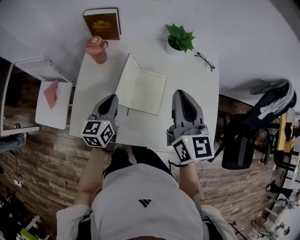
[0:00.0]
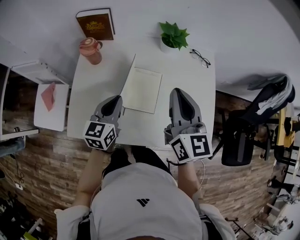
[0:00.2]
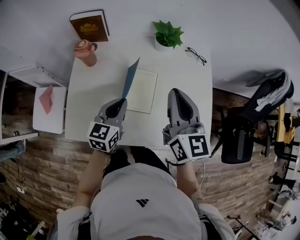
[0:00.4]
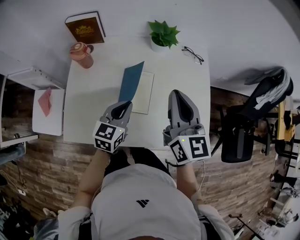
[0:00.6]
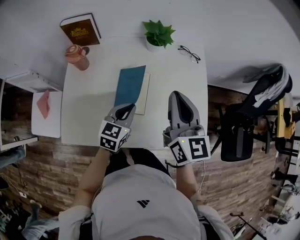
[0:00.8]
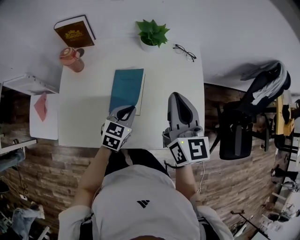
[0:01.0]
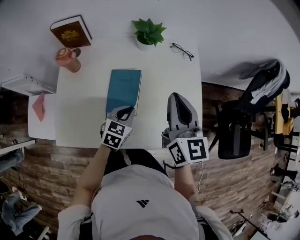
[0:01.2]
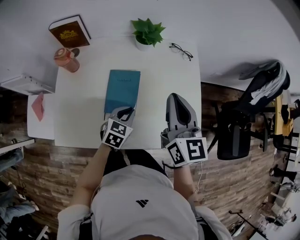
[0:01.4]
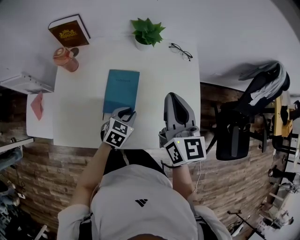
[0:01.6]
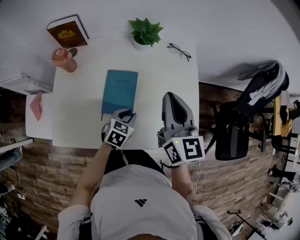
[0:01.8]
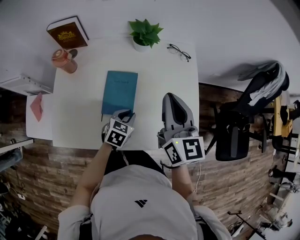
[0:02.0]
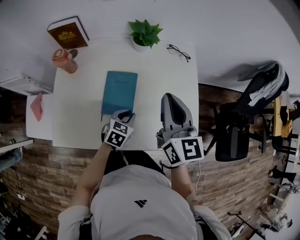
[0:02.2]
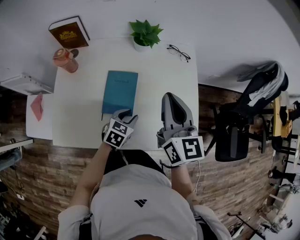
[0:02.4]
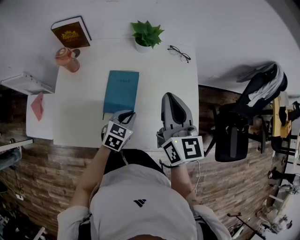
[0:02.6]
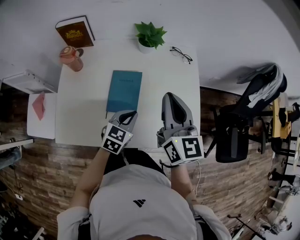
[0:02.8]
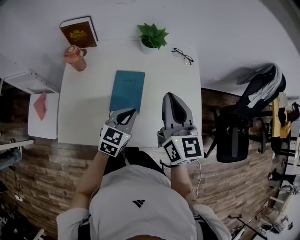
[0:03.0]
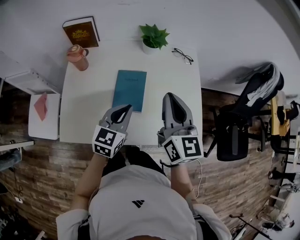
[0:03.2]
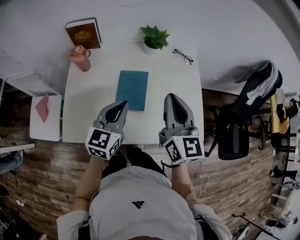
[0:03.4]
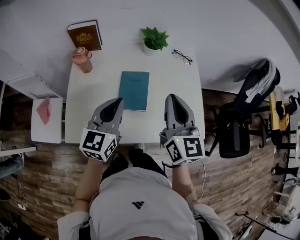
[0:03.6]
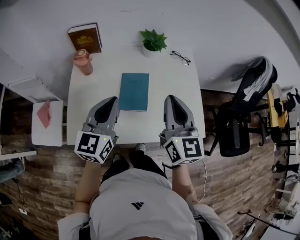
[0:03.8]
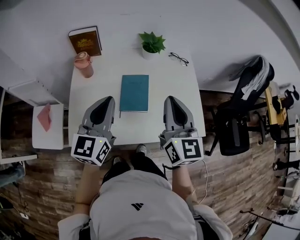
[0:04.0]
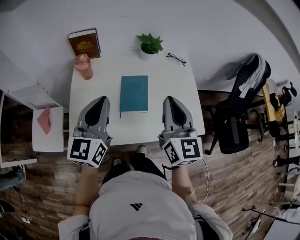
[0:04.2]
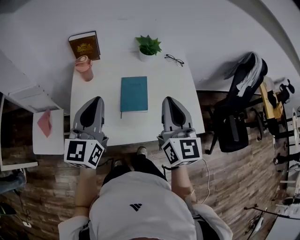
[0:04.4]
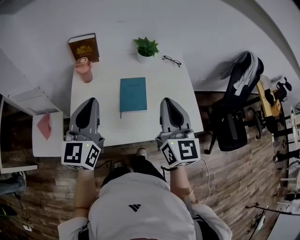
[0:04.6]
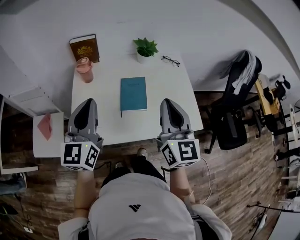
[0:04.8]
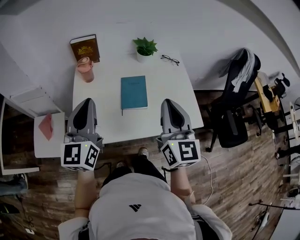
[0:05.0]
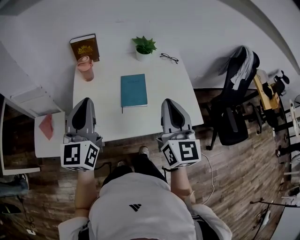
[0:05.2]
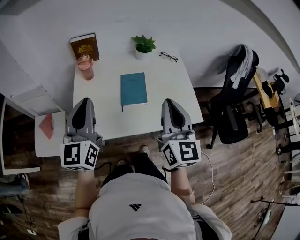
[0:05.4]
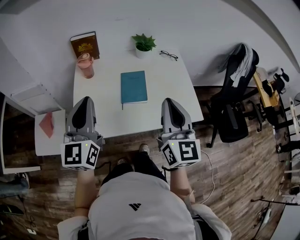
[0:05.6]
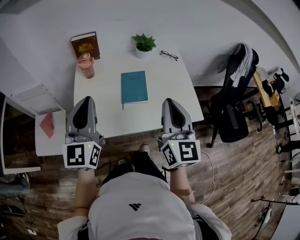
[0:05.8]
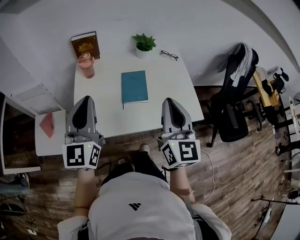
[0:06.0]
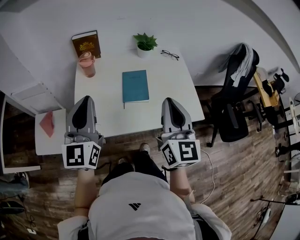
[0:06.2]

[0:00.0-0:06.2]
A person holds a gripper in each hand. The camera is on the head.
0:00.0 to 0:01.6: The left gripper is displaced to the right and downward by roughly 25 cm, and rotates roughly 40 degrees. Meanwhile the right gripper moves to the right, about 10 cm.
0:01.6 to 0:03.2: The left gripper shifts about 15 cm upward, and rotates some 20 degrees. The right gripper changes place by approximately 5 cm.
0:03.2 to 0:04.6: The left gripper moves upward, to the left and backward, about 25 cm, and rotates about 30 degrees, while the right gripper travels backward and upward by some 10 cm.
0:04.6 to 0:06.2: The two grippers go some 5 cm backward.

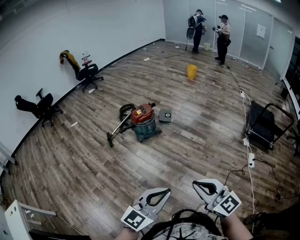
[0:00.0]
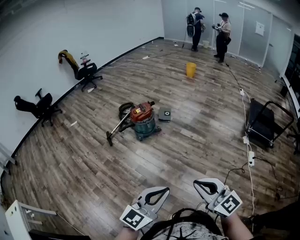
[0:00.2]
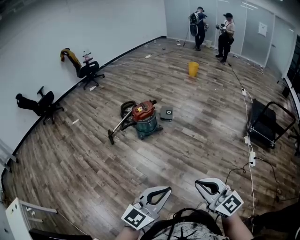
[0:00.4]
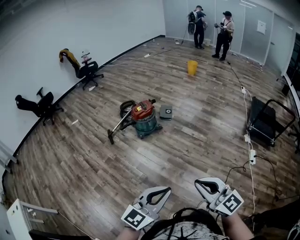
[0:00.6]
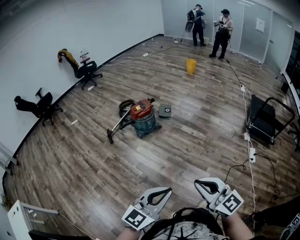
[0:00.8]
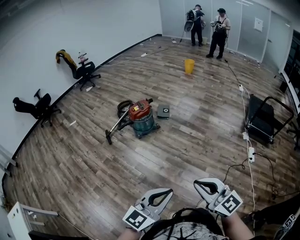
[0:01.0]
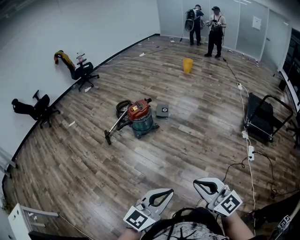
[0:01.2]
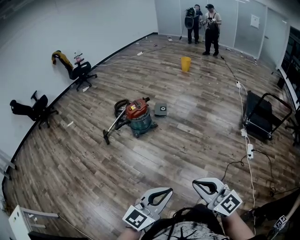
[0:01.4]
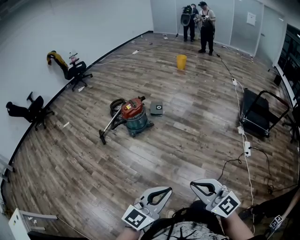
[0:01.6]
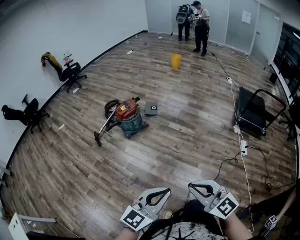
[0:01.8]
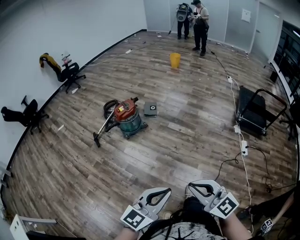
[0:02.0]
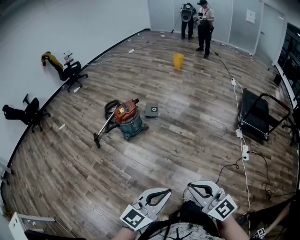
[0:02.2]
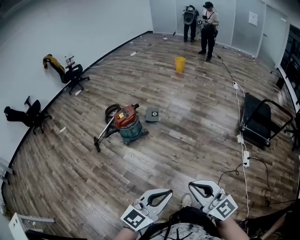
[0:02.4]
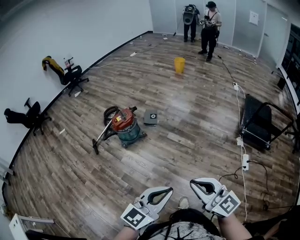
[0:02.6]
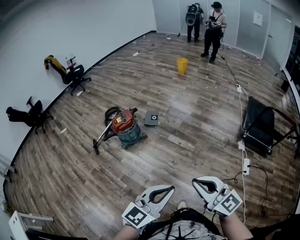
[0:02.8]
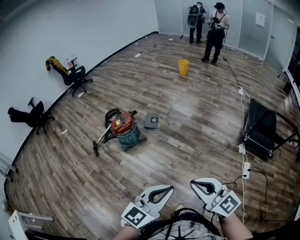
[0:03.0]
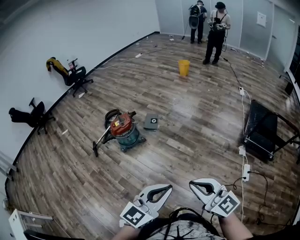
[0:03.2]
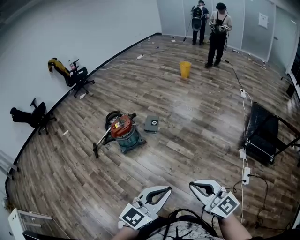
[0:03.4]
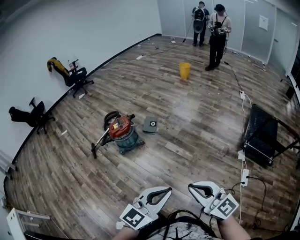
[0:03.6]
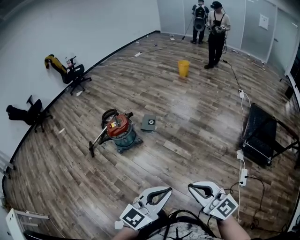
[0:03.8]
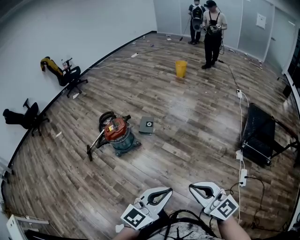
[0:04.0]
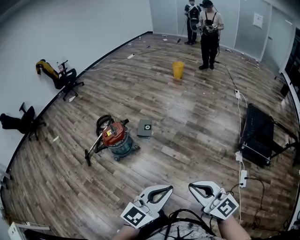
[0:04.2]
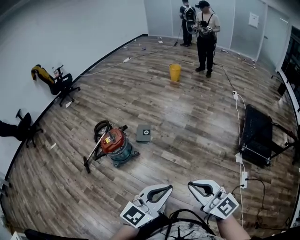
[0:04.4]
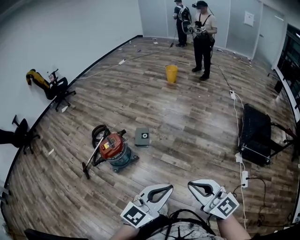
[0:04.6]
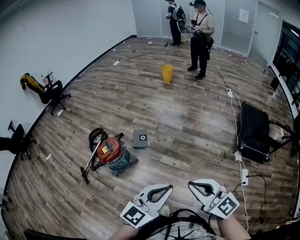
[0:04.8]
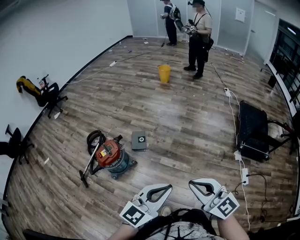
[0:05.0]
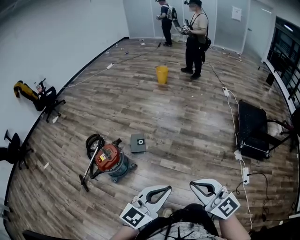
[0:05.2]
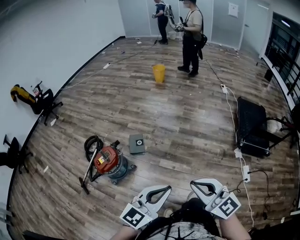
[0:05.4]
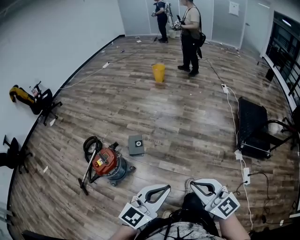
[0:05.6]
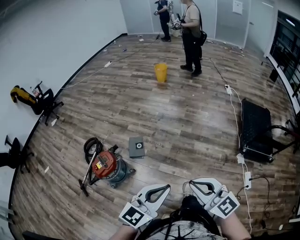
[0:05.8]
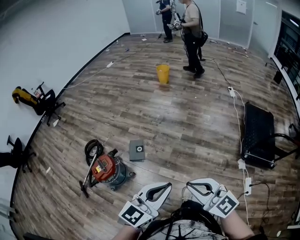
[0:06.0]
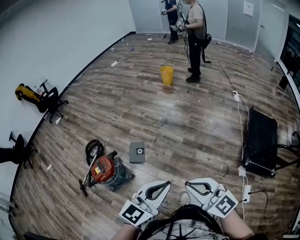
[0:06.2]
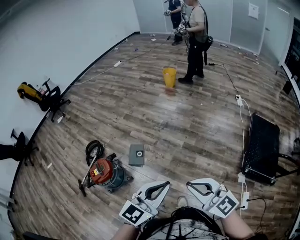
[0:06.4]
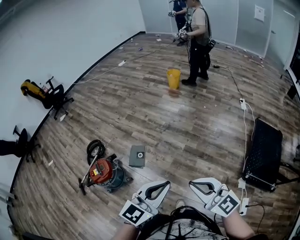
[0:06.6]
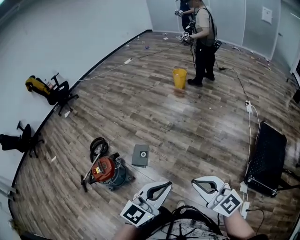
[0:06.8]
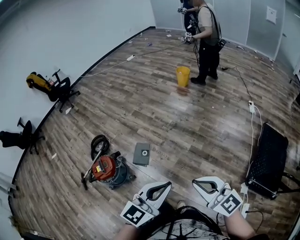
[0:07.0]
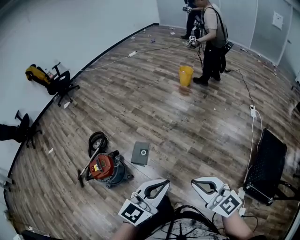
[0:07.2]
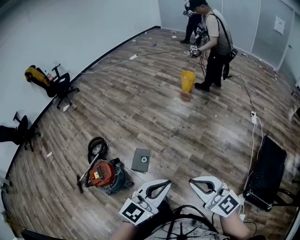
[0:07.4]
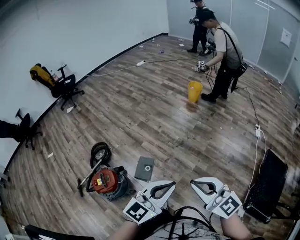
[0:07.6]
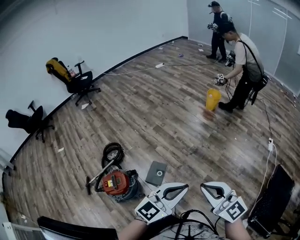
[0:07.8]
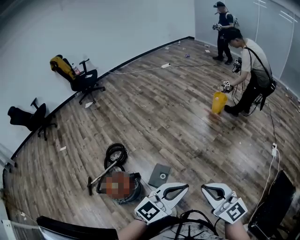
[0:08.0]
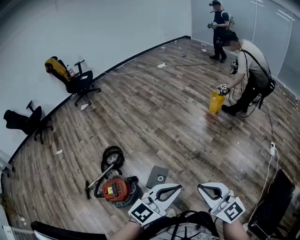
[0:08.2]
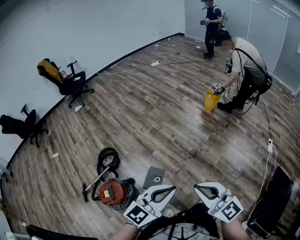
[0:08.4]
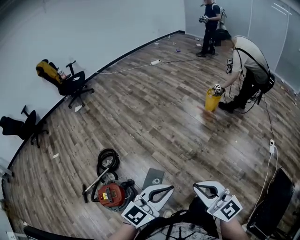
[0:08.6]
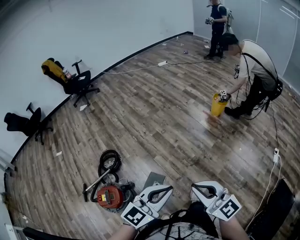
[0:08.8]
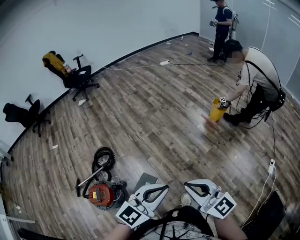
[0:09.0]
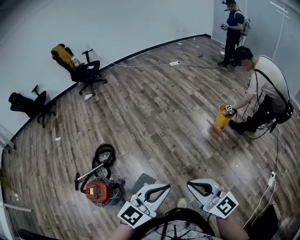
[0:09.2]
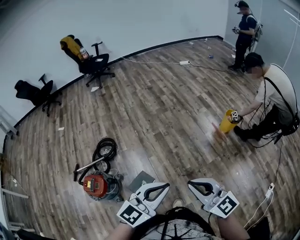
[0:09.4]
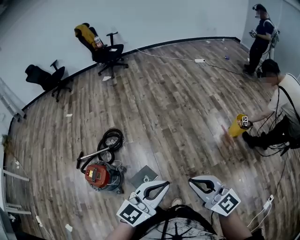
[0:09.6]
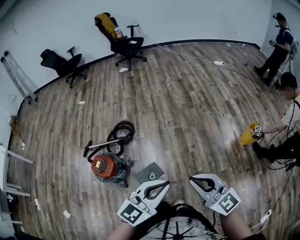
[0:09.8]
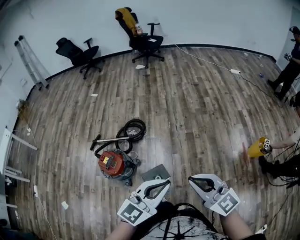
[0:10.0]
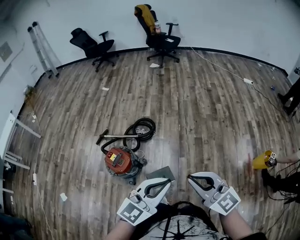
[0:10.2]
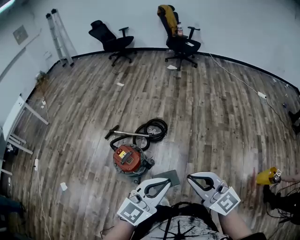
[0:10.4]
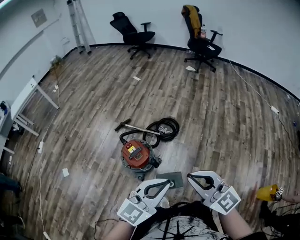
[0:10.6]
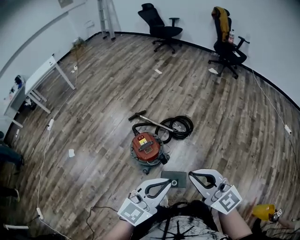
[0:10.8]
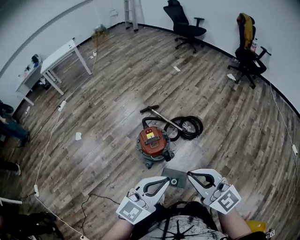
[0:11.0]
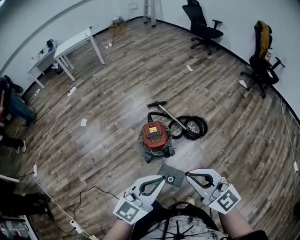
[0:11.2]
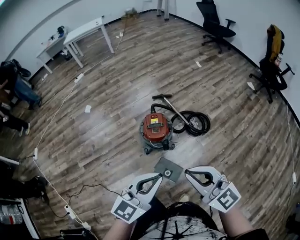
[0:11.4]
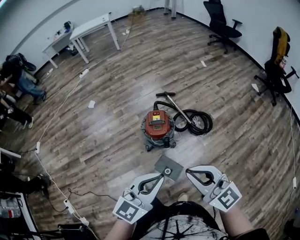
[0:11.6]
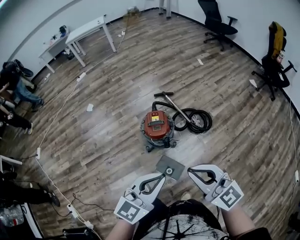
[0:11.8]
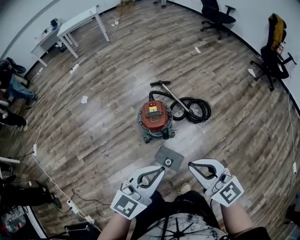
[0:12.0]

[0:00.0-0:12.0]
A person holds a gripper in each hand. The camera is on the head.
0:00.0 to 0:01.6: The grippers stay close to where they were, moving slightly.
0:01.6 to 0:03.0: The grippers both shift forward and to the right by some 30 cm.
0:03.0 to 0:04.4: The two grippers go roughly 20 cm forward.
0:04.4 to 0:06.0: The two grippers go approximately 30 cm forward.
0:06.0 to 0:07.6: The grippers both shift forward by roughly 30 cm.
0:07.6 to 0:09.0: Both grippers move forward, roughly 30 cm.
0:09.0 to 0:10.4: The right gripper changes place by roughly 25 cm, and swivels some 50 degrees, while the left gripper changes place by roughly 20 cm, and swivels roughly 50 degrees.
0:10.4 to 0:12.0: The grippers both shift downward by about 10 cm. The right gripper rotates some 50 degrees. The left gripper swivels roughly 50 degrees.

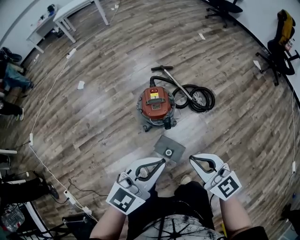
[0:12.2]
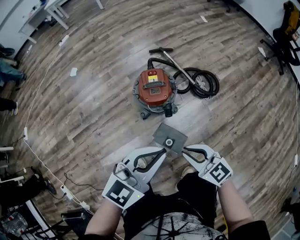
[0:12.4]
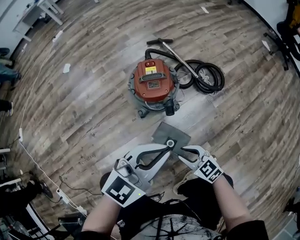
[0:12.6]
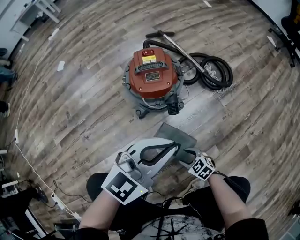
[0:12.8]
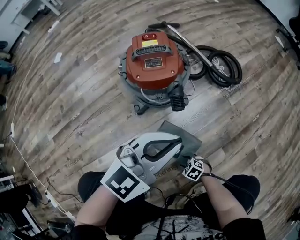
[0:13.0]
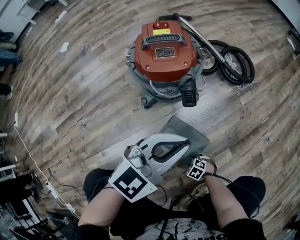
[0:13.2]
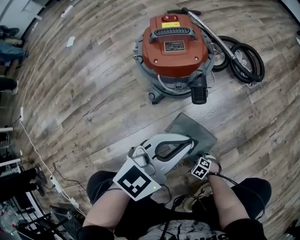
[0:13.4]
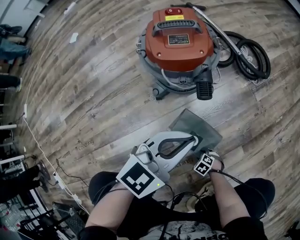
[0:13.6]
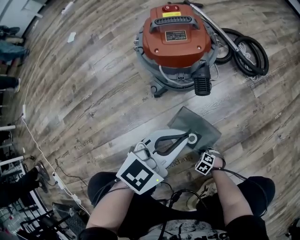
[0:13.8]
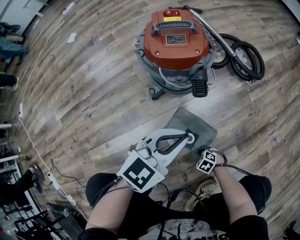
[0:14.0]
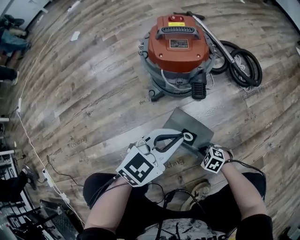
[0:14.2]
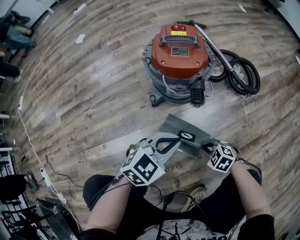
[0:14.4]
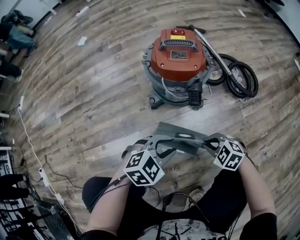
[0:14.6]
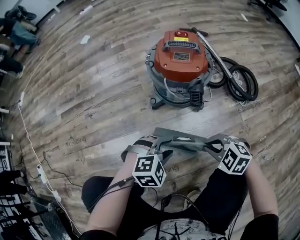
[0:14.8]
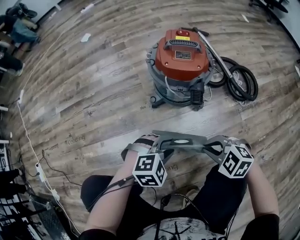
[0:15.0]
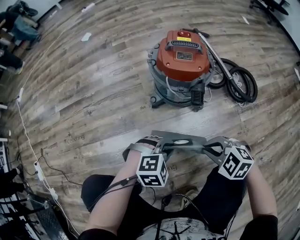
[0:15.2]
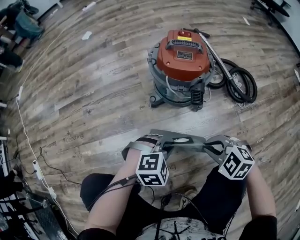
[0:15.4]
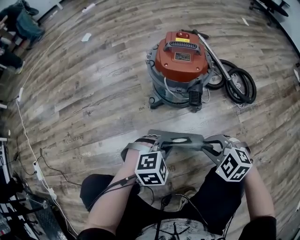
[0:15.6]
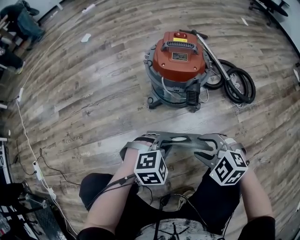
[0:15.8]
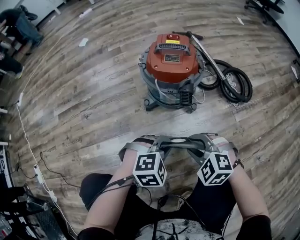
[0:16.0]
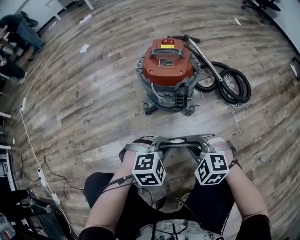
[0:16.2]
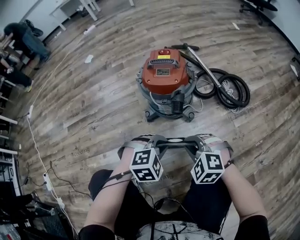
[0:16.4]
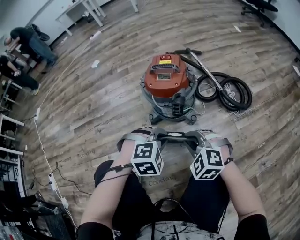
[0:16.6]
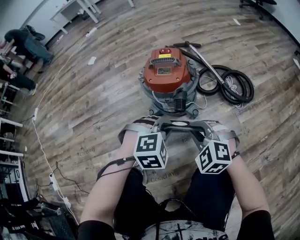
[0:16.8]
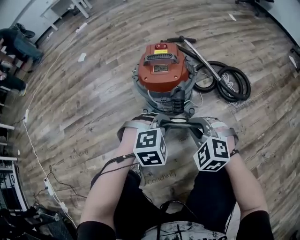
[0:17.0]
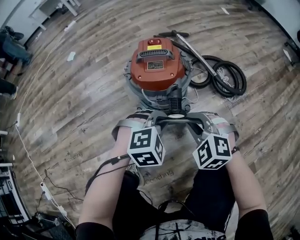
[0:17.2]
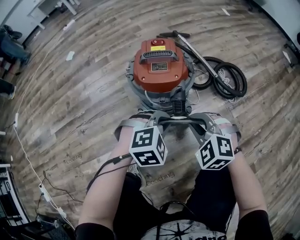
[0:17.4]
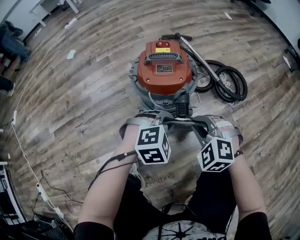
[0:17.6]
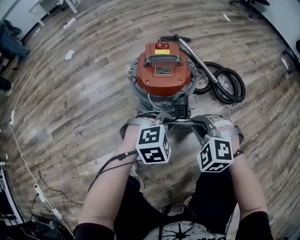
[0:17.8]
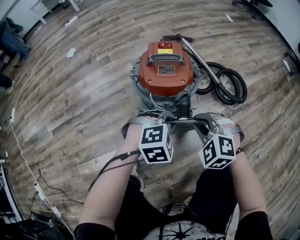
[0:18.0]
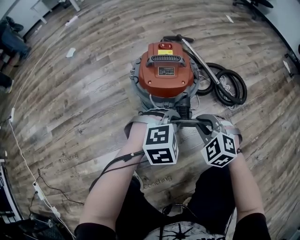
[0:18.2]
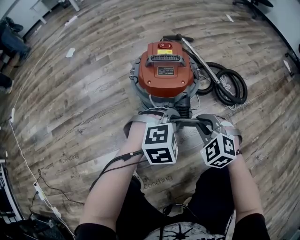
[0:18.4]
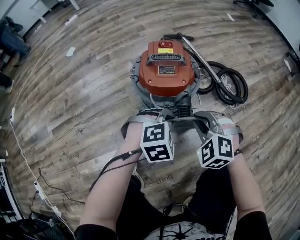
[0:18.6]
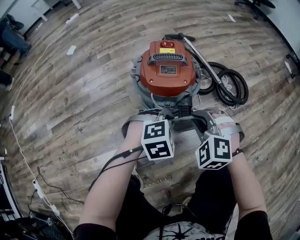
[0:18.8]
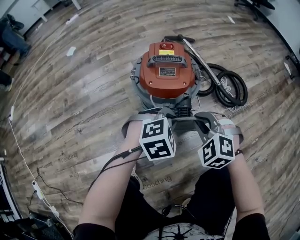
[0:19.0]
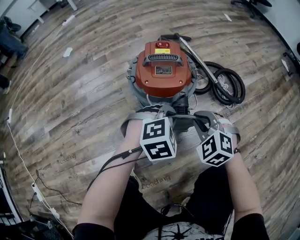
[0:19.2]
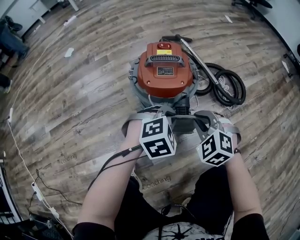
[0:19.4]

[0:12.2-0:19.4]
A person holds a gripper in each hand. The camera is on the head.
0:12.2 to 0:13.6: The left gripper heads downward, covering roughly 50 cm. The right gripper shifts about 90 cm downward, tips its fingers downward by some 70 degrees, and opens up.
0:13.6 to 0:15.0: The left gripper is displaced downward by approximately 10 cm, tips its fingers downward by some 30 degrees, and opens up. The right gripper goes about 35 cm upward, rotates roughly 40 degrees, and closes.
0:15.0 to 0:16.6: The grippers both shift upward by some 10 cm. The right gripper changes its angle by some 30 degrees, and opens, then closes once more. The left gripper closes its fingers.
0:16.6 to 0:18.0: The grippers both shift forward by approximately 10 cm.
0:18.0 to 0:19.4: The grippers move only a little.
